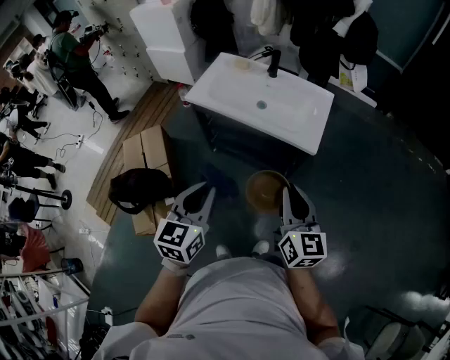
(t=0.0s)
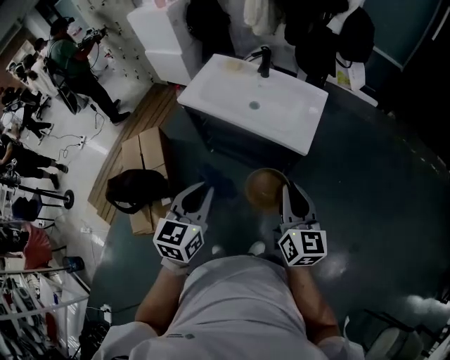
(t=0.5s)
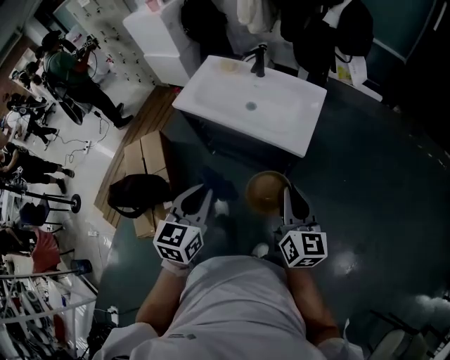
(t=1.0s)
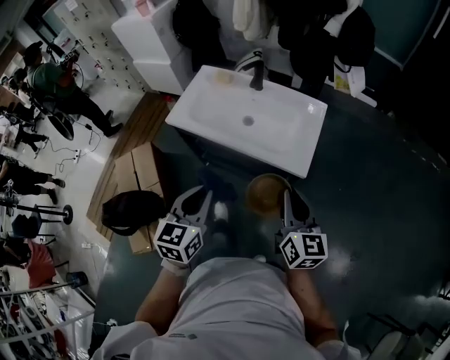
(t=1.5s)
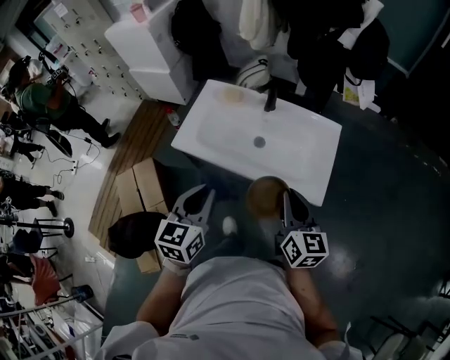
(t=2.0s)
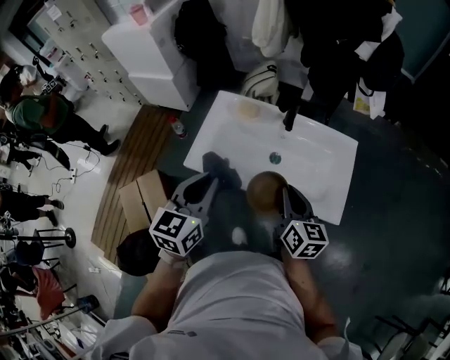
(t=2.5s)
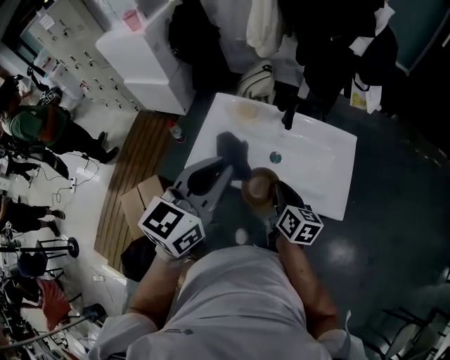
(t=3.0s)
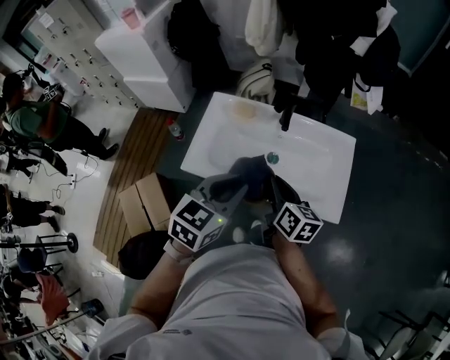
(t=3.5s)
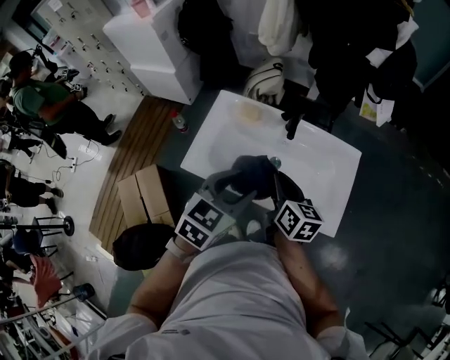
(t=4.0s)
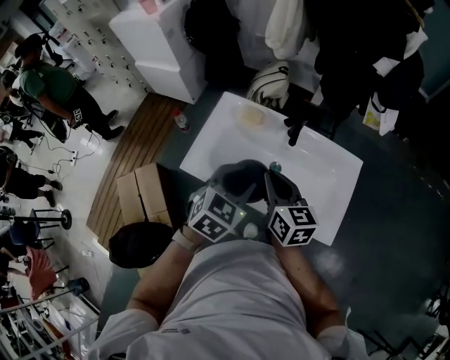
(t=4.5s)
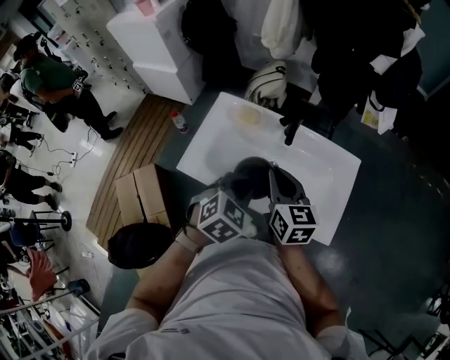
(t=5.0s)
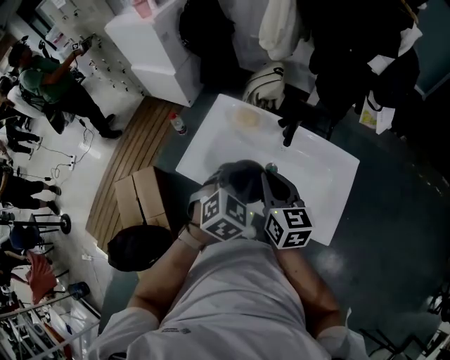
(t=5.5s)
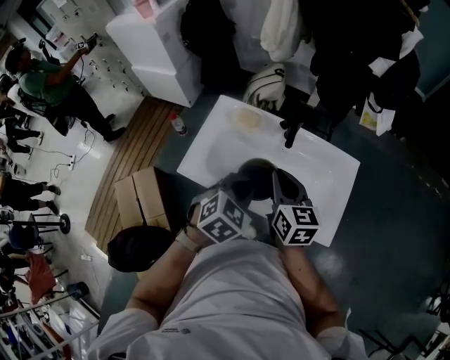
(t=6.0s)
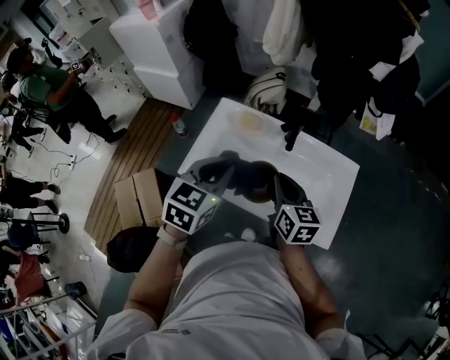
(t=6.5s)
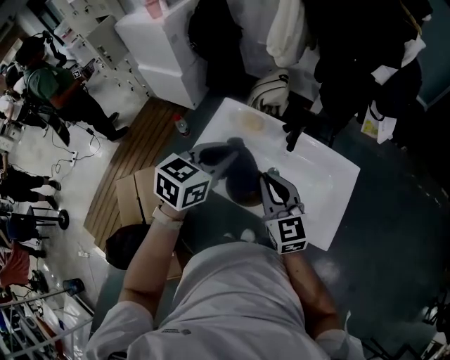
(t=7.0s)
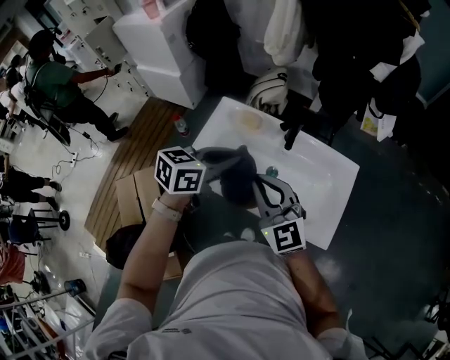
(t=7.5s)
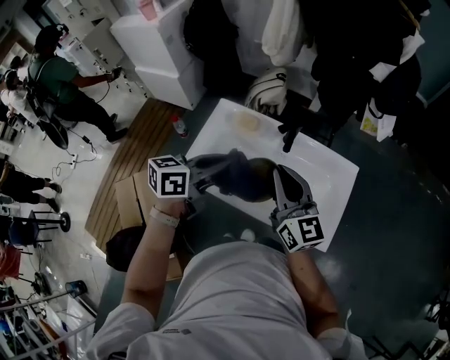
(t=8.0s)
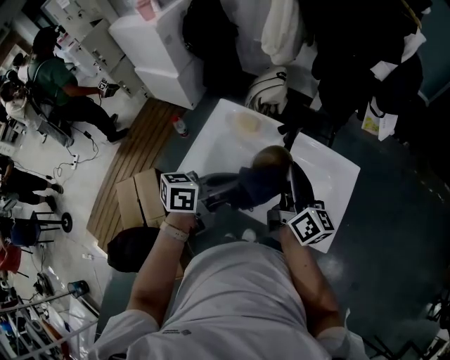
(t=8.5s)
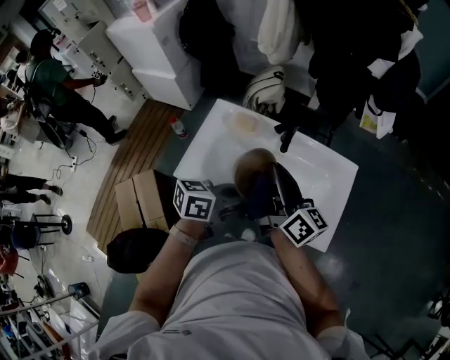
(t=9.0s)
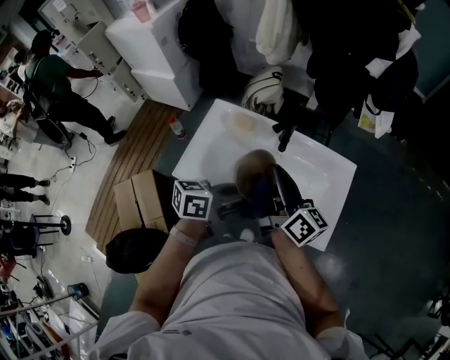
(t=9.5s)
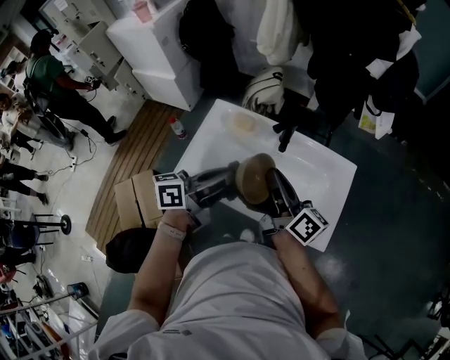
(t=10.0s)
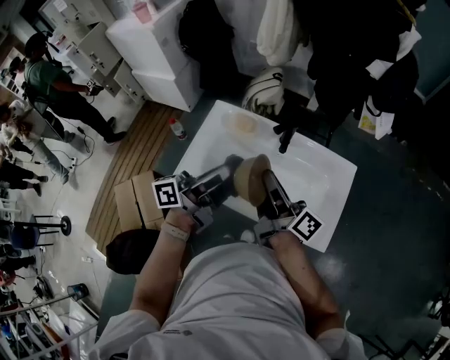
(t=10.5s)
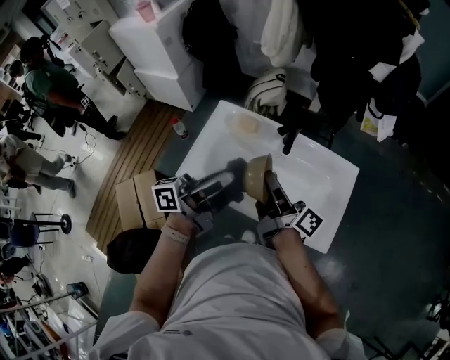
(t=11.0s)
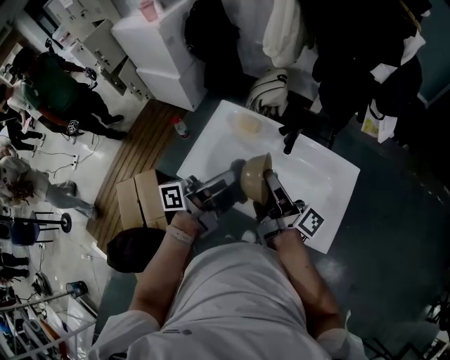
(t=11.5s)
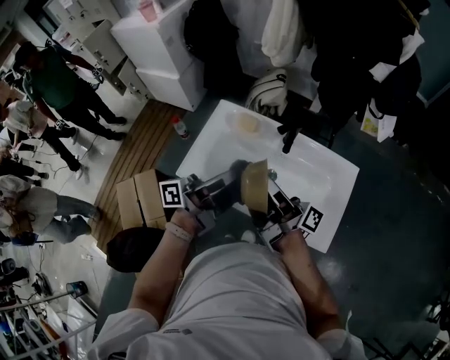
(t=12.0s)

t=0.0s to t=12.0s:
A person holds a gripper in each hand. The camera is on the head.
t=0.0s to t=2.0s: Both grippers travel together forward, some 25 cm.
t=2.0s to t=4.0s: The right gripper travels forward and to the left by about 20 cm. The left gripper travels forward by some 15 cm, swivels roughly 30 degrees, and opens up.
t=4.0s to t=6.0s: The left gripper travels downward by about 5 cm, changes its angle by roughly 20 degrees, and closes its fingers.
t=6.0s to t=8.0s: The right gripper heads upward, covering some 5 cm, and rotates some 20 degrees. Meanwhile the left gripper moves to the left and upward, approximately 10 cm, and angles its fingers upward, by about 30 degrees.
t=8.0s to t=10.0s: The left gripper goes to the right and returns, some 10 cm each way. Meanwhile the right gripper rolls clockwise, seen from behind, by about 50 degrees.
t=10.0s to t=12.0s: The right gripper changes its angle by about 40 degrees, while the left gripper changes its angle by some 30 degrees.

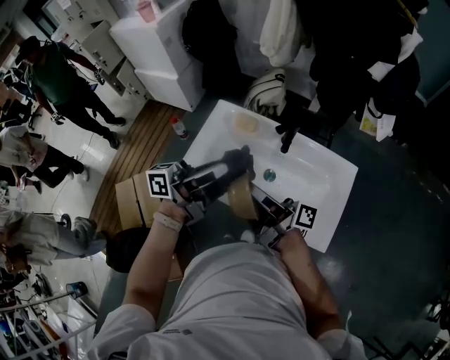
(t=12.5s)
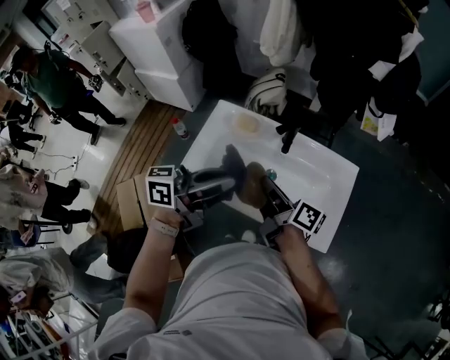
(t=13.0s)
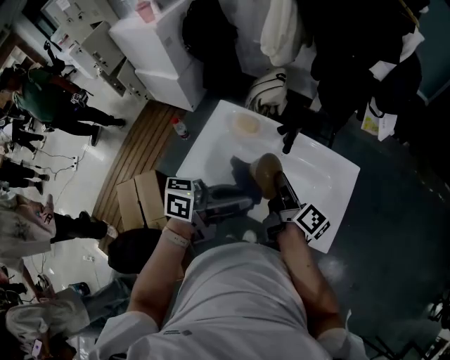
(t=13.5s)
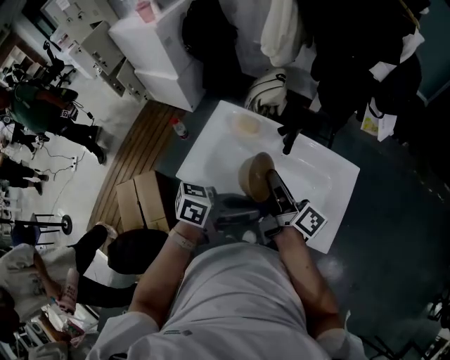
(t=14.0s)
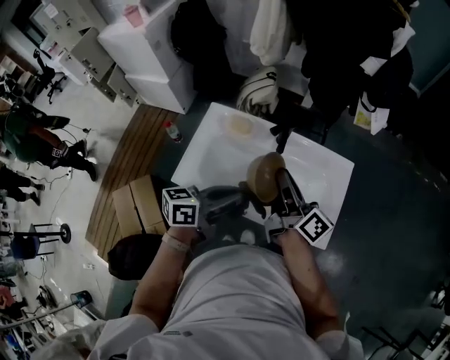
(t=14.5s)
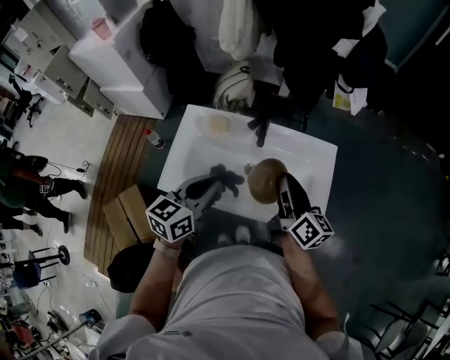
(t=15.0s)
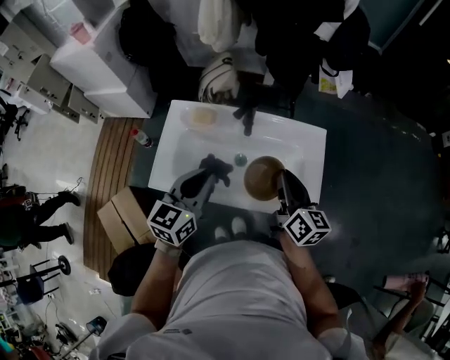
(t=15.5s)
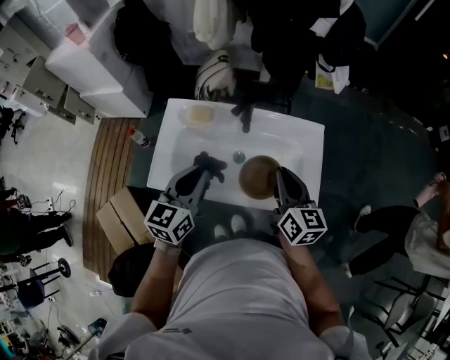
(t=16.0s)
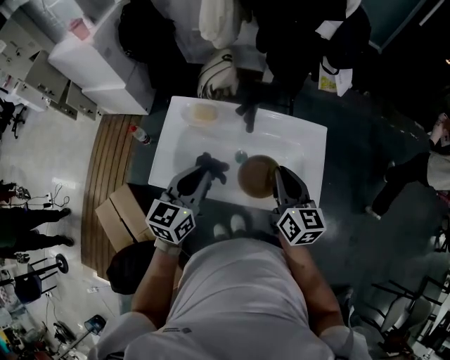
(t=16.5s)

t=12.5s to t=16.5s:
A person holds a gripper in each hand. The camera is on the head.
t=12.5s to t=14.5s: The right gripper heads forward and to the right, covering about 10 cm, and turns by about 40 degrees. The left gripper travels downward and to the right by roughly 10 cm, and tips its fingers downward by approximately 30 degrees.
t=14.5s to t=16.5s: The left gripper turns by approximately 40 degrees. Meanwhile the right gripper goes about 5 cm to the right, and rotates approximately 50 degrees.

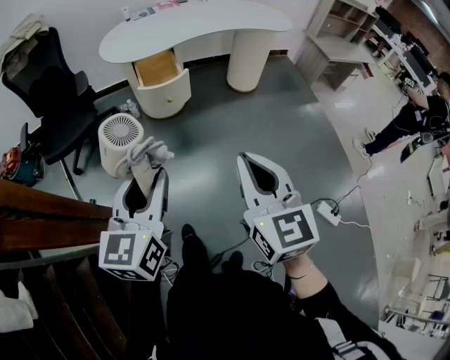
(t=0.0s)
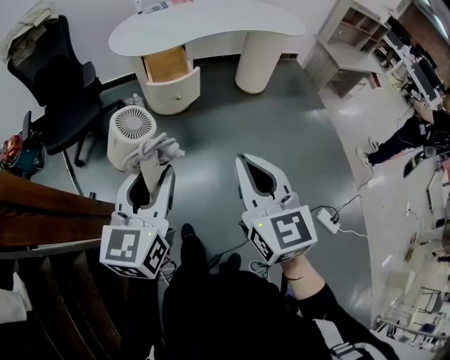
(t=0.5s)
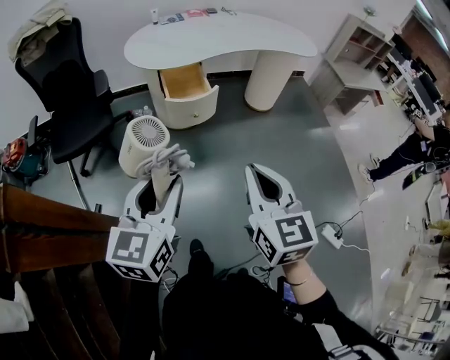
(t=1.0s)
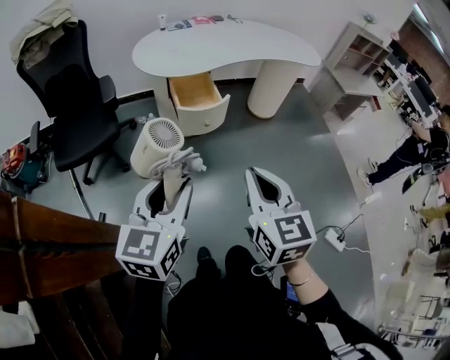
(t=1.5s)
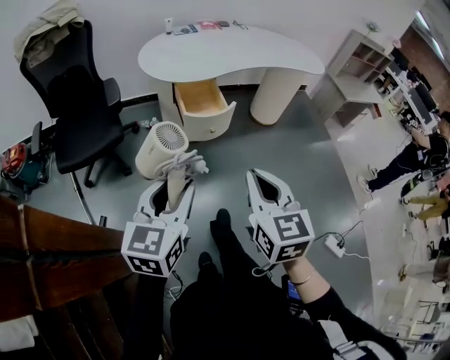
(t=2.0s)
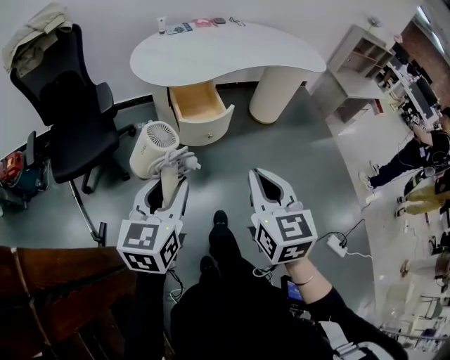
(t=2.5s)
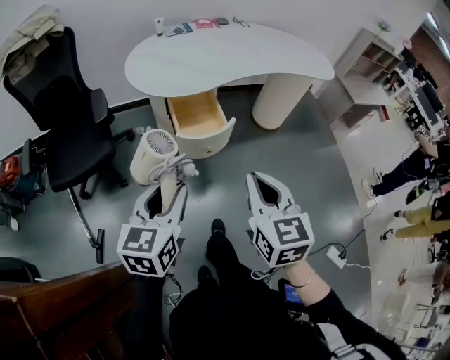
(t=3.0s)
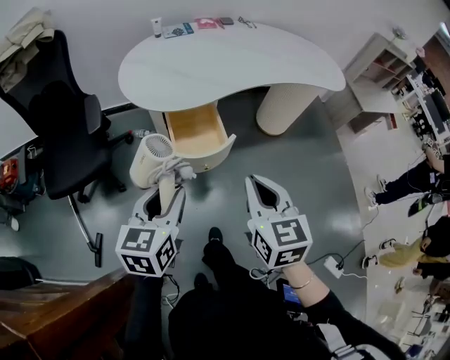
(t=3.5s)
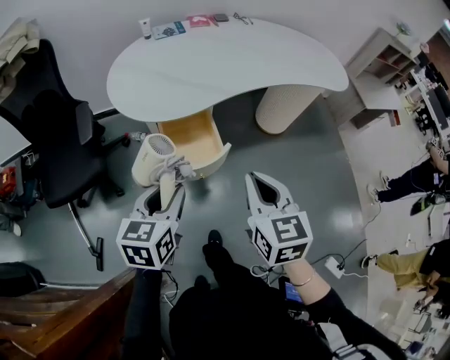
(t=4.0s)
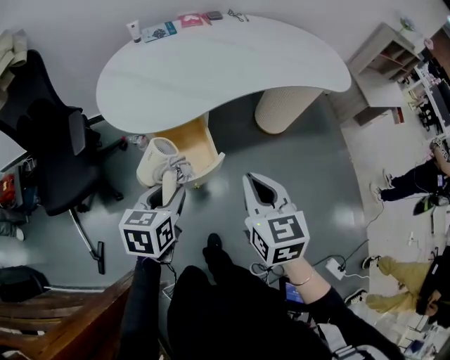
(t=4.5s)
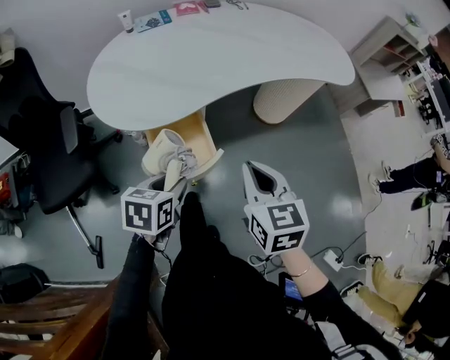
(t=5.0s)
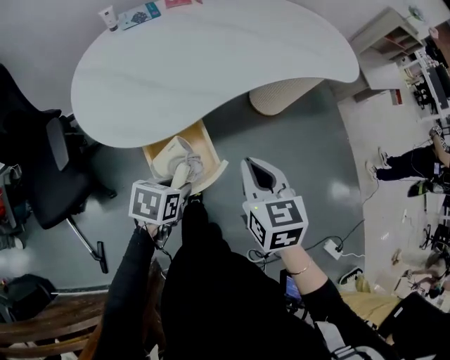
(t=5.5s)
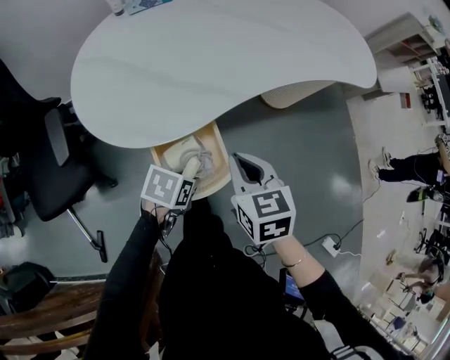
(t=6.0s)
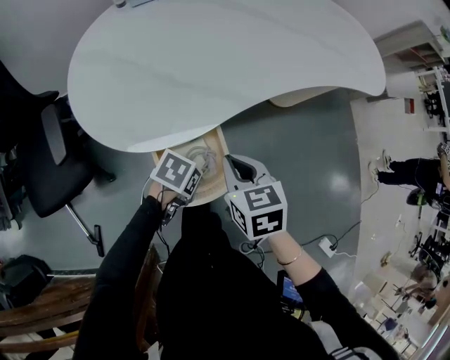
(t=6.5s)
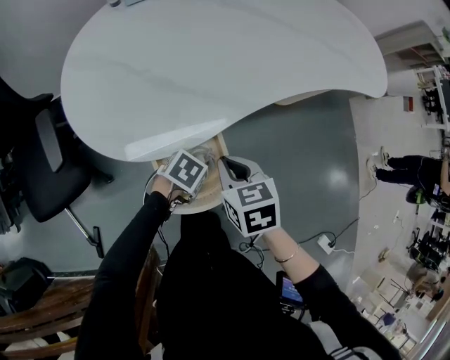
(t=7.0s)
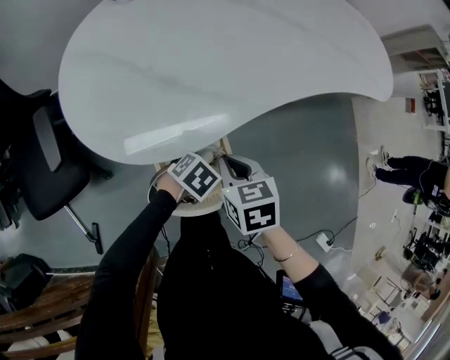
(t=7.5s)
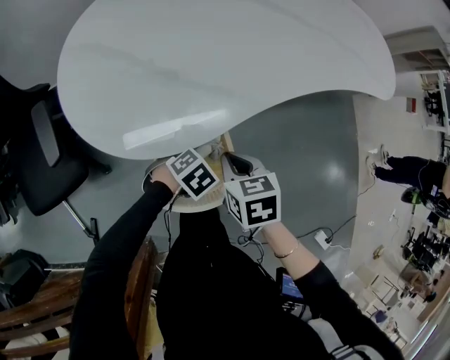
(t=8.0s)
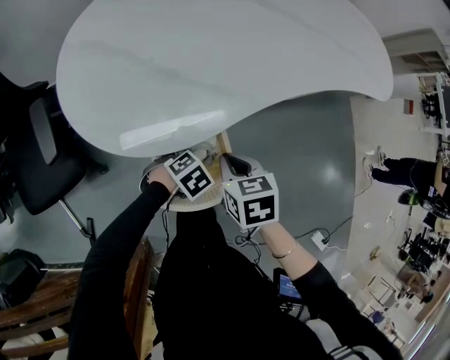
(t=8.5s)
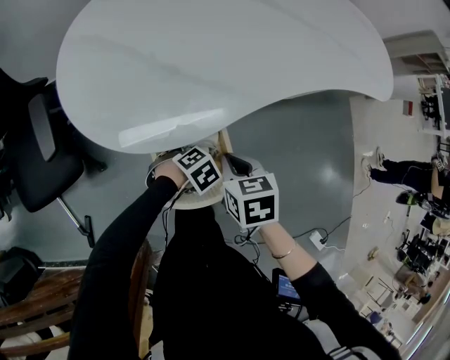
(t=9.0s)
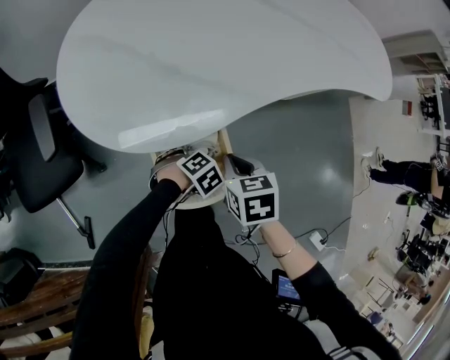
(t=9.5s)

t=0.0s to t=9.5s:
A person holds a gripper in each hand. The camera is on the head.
t=0.0s to t=2.0s: The grippers both shift to the left and forward by some 20 cm.
t=2.0s to t=4.0s: The grippers both shift forward by some 30 cm.
t=4.0s to t=5.5s: The right gripper is displaced forward and downward by some 15 cm; the left gripper is displaced downward and forward by approximately 20 cm, and changes its angle by roughly 40 degrees.
t=5.5s to t=7.5s: The two grippers go some 10 cm downward. The right gripper turns by approximately 20 degrees, while the left gripper rotates some 30 degrees.
t=7.5s to t=9.5s: The left gripper heads downward, covering about 5 cm, and swivels roughly 20 degrees.

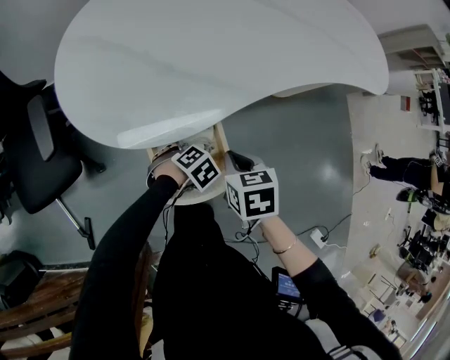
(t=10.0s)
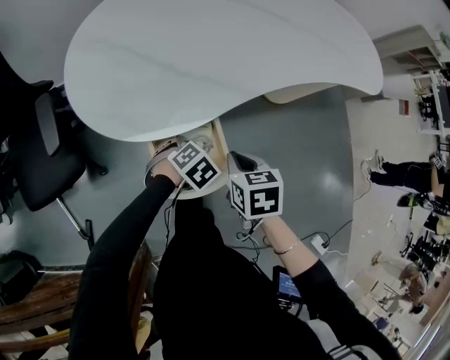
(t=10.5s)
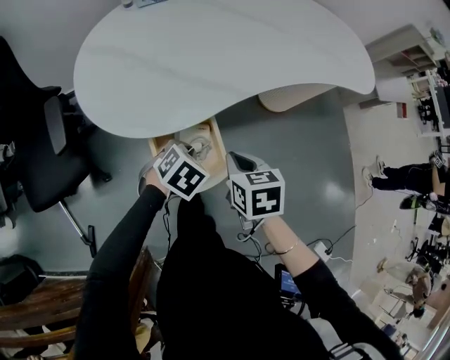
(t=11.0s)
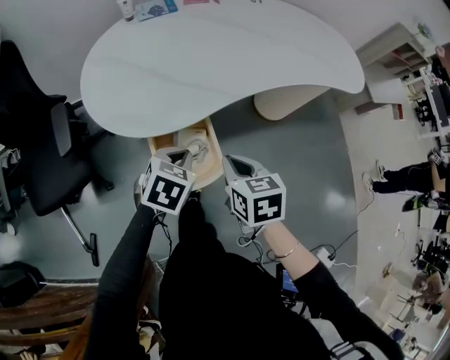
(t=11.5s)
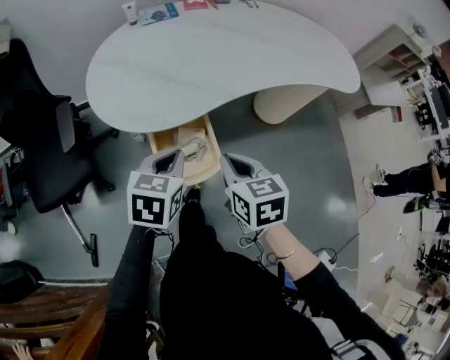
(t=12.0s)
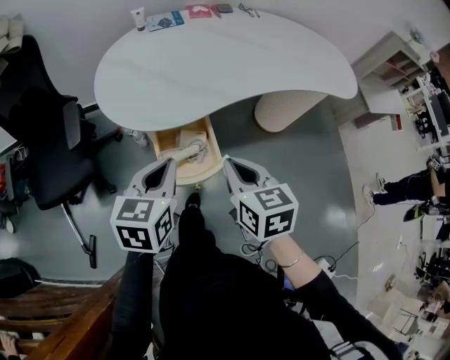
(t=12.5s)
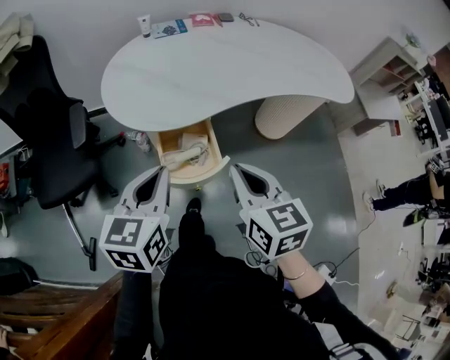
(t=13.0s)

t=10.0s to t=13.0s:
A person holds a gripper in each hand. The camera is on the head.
t=10.0s to t=11.5s: The right gripper moves upward, some 10 cm. Meanwhile the left gripper moves upward, roughly 20 cm, angles its fingers upward, by about 30 degrees, and closes up.
t=11.5s to t=13.0s: Both grippers travel together upward and backward, approximately 15 cm. The left gripper changes its angle by roughly 40 degrees, while the right gripper swivels about 20 degrees.
